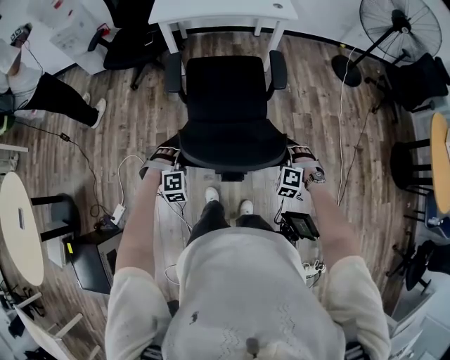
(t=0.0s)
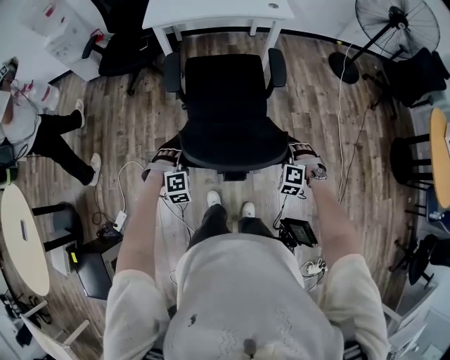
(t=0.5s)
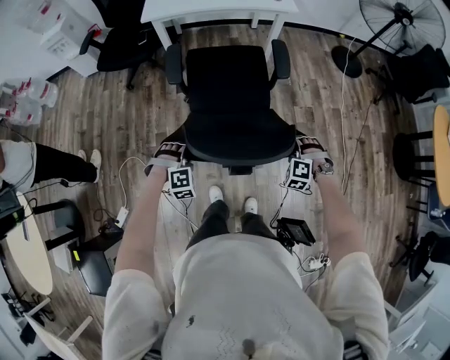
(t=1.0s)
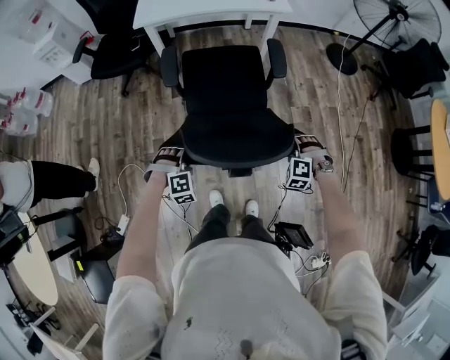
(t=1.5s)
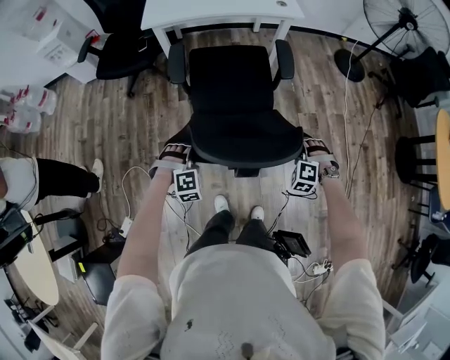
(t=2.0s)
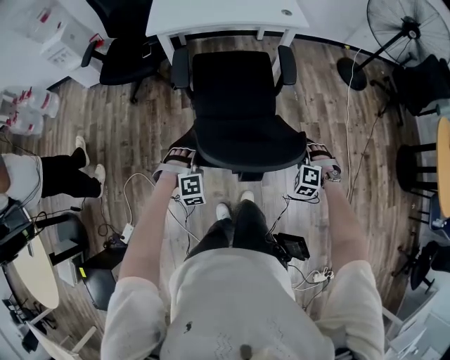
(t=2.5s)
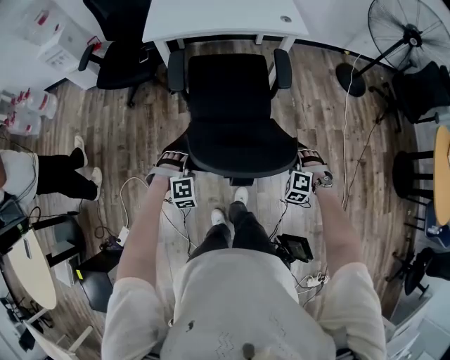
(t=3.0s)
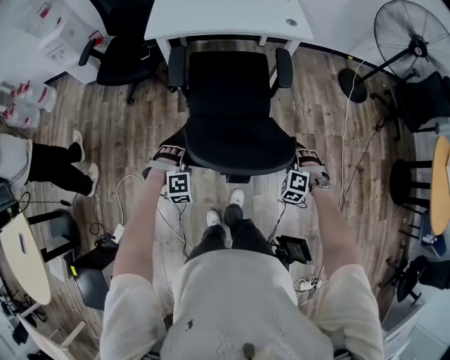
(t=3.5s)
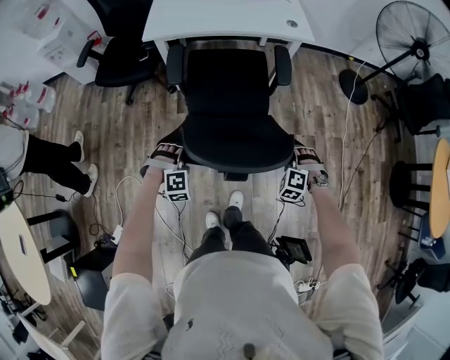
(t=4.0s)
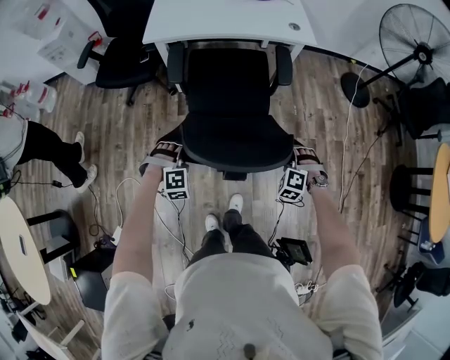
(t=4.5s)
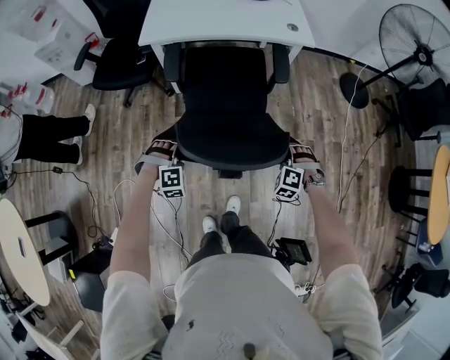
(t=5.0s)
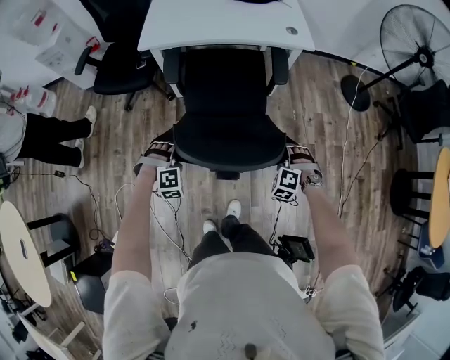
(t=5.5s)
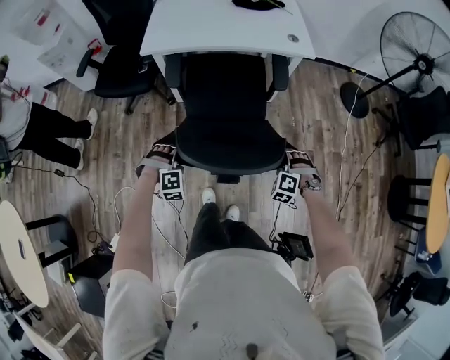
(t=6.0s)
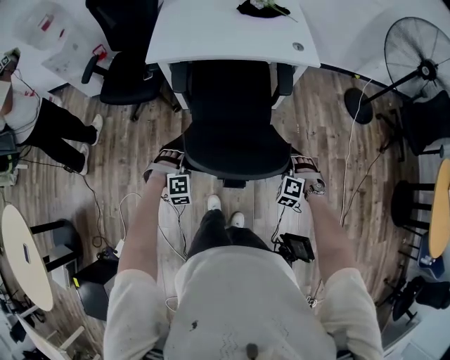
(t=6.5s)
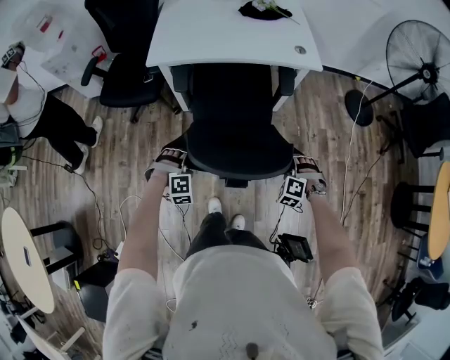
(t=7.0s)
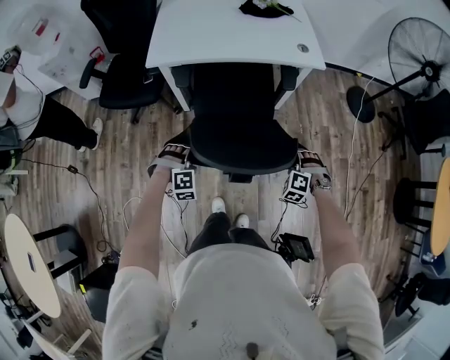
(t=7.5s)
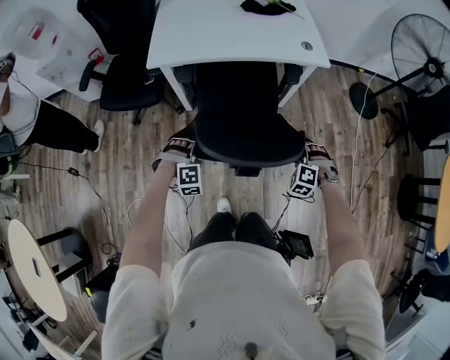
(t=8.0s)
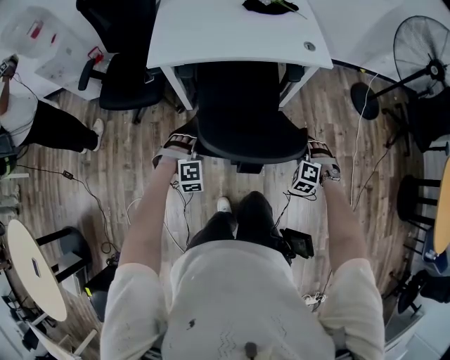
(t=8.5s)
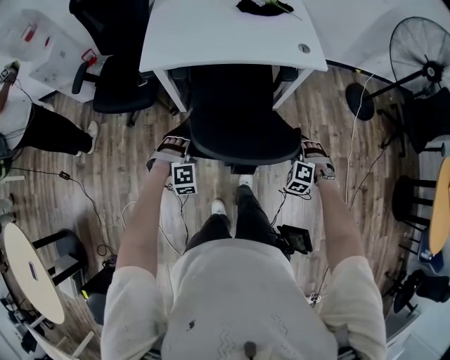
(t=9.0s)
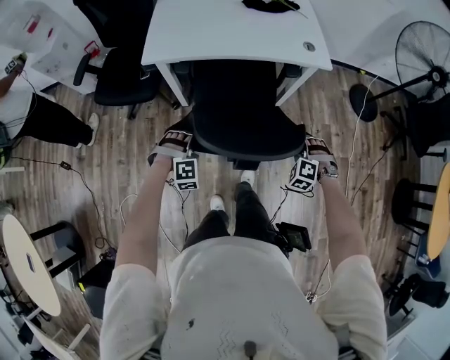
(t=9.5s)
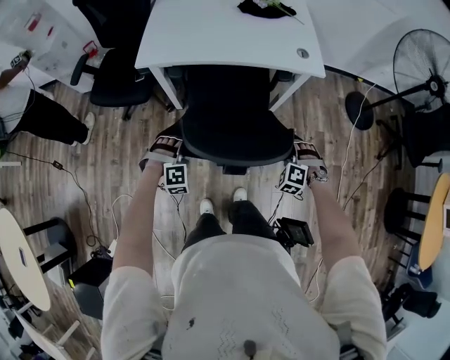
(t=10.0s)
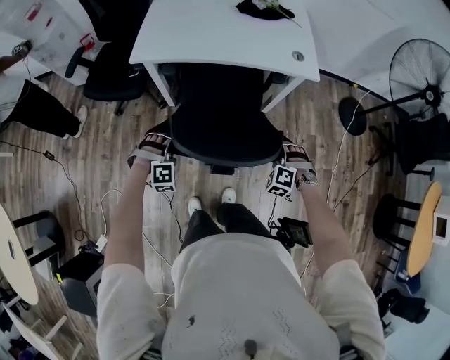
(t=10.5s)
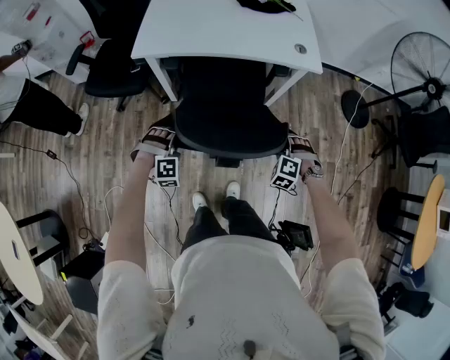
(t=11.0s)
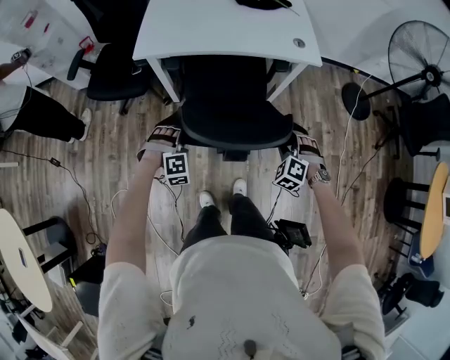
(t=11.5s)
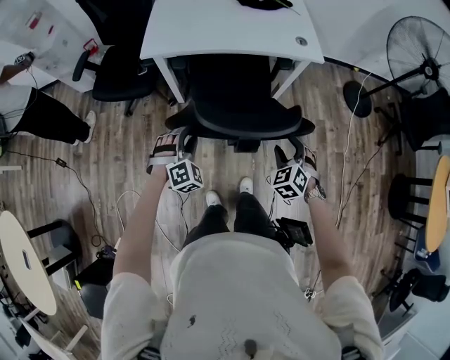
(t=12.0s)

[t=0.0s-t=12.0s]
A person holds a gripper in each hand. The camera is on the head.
t=0.0s to t=2.0s: Both grippers travel together forward, about 15 cm.
t=2.0s to t=4.0s: The grippers both shift forward by about 15 cm.
t=4.0s to t=6.0s: Both grippers move forward, roughly 10 cm.
t=6.0s to t=8.0s: The grippers both shift forward by approximately 15 cm.
t=8.0s to t=10.0s: Both grippers move forward, roughly 10 cm.
t=10.0s to t=12.0s: The right gripper is displaced backward, upward and to the left by about 15 cm, and swivels approximately 40 degrees. Meanwhile the left gripper heads backward and upward, covering roughly 10 cm, rotates about 20 degrees, and opens up.

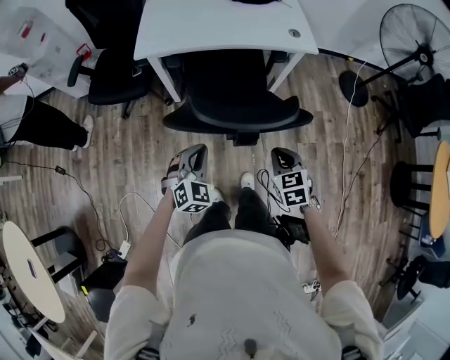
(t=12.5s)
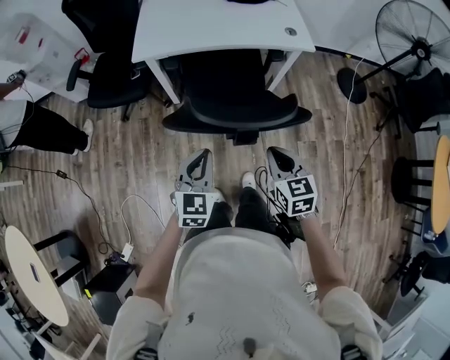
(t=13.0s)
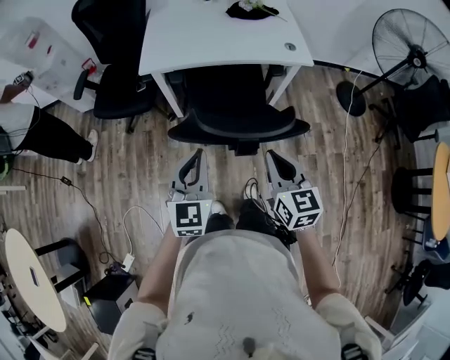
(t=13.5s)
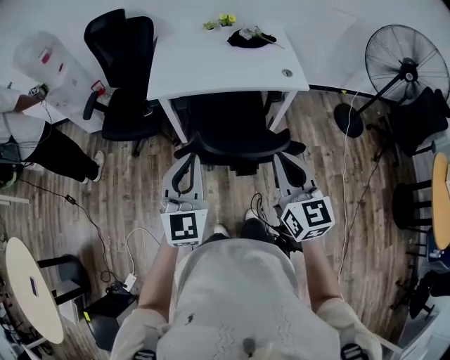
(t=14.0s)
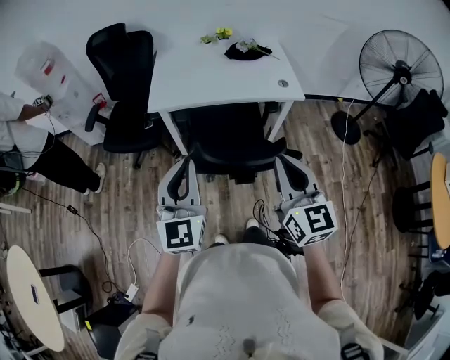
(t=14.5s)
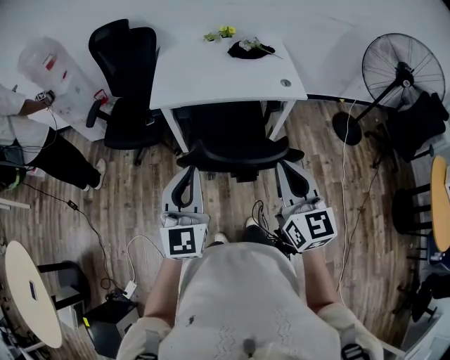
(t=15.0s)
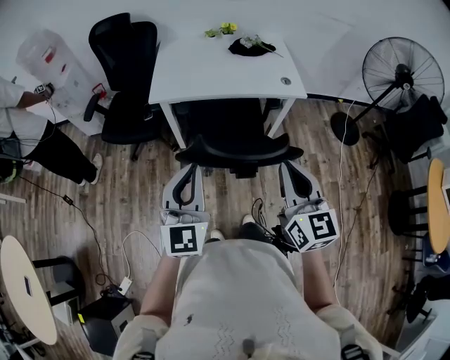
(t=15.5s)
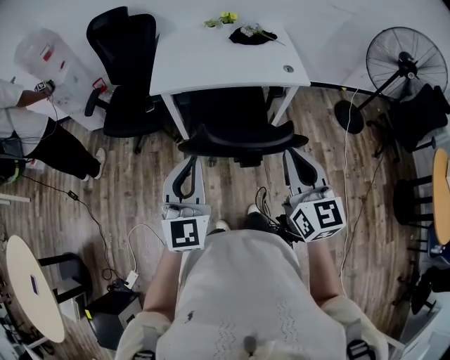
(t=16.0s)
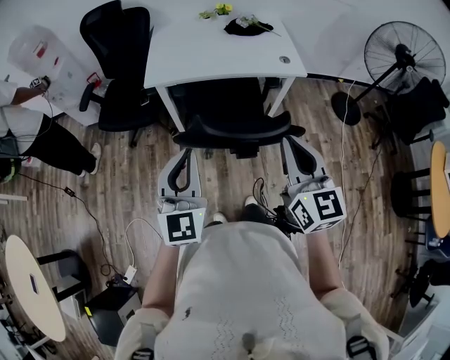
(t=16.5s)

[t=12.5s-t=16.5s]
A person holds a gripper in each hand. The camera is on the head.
t=12.5s to t=14.5s: Both grippers move upward, about 30 cm. The right gripper tilts its fingers roughly 40 degrees upward; the left gripper tips its fingers upward by about 40 degrees.
t=14.5s to t=16.5s: The left gripper ends up approximately 5 cm from where it was.

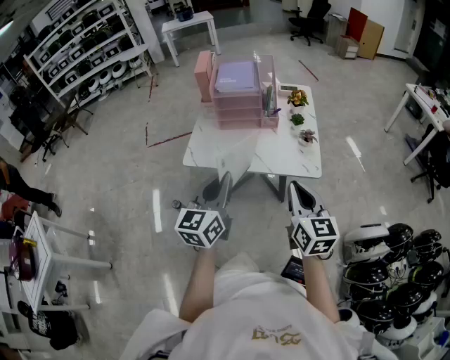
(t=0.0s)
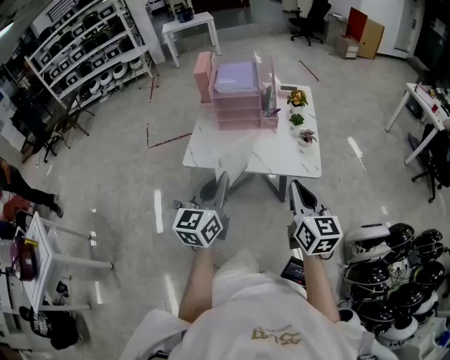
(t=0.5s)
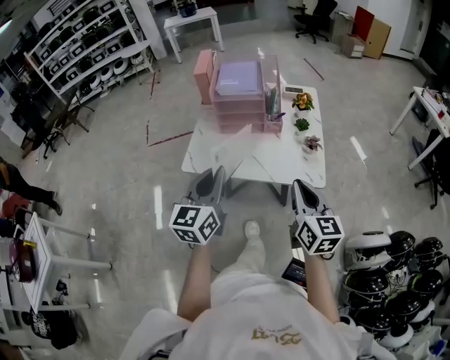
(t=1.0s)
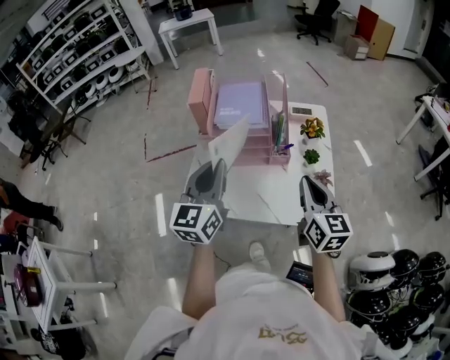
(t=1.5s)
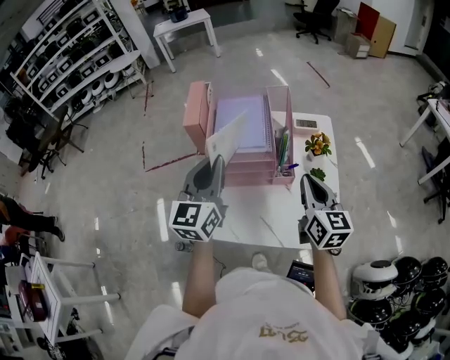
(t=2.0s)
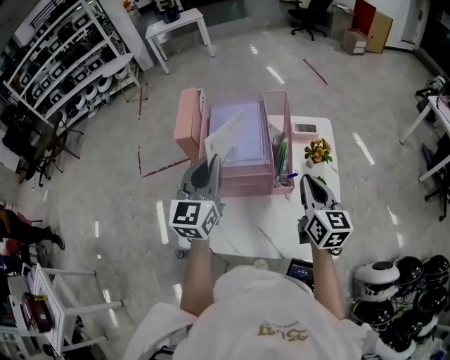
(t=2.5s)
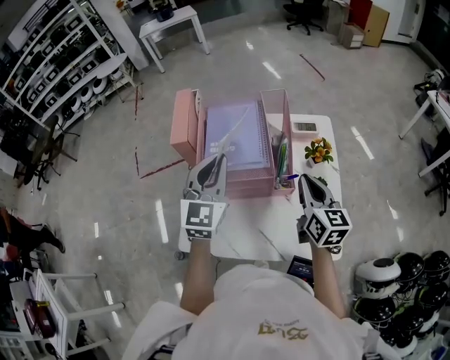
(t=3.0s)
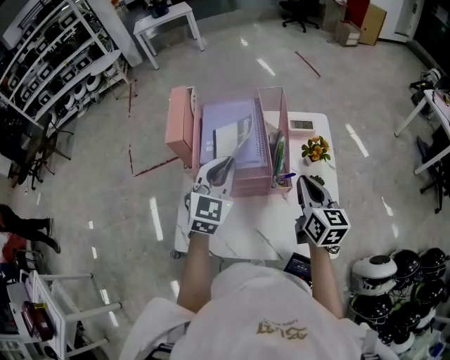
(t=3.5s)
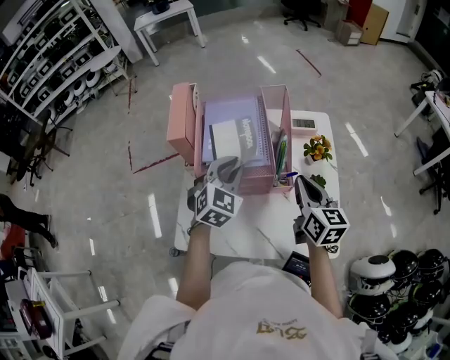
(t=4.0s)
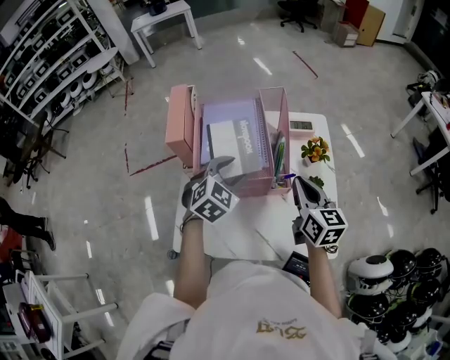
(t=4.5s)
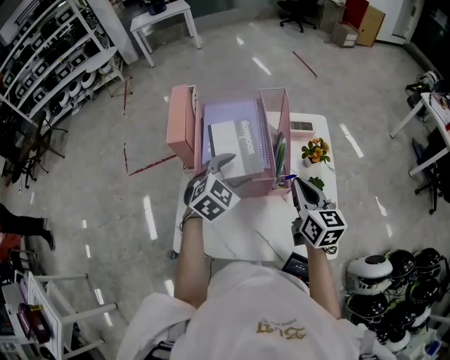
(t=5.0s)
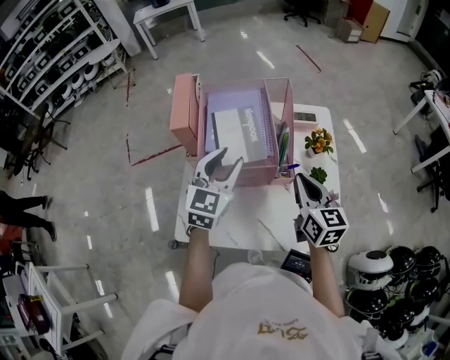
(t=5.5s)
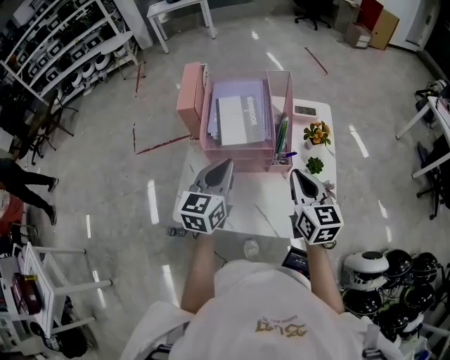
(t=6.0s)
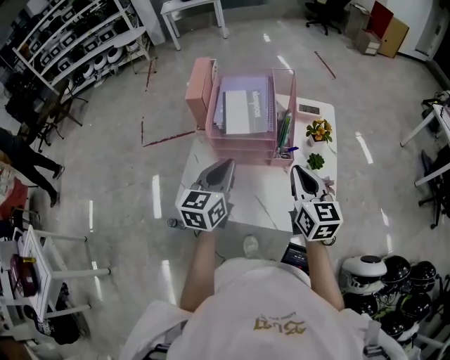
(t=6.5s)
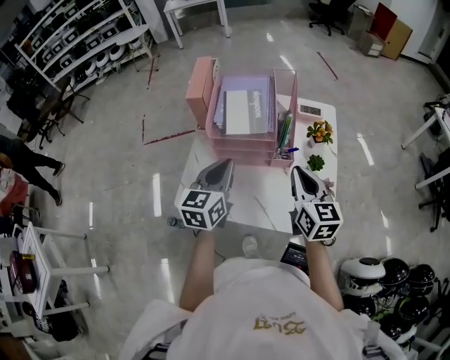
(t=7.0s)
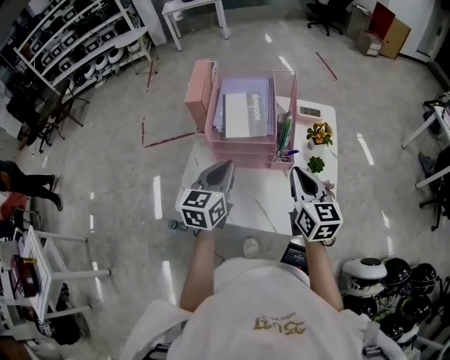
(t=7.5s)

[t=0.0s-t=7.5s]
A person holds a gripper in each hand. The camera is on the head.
t=0.0s to t=2.0s: Both grippers travel together forward, about 40 cm.
t=2.0s to t=4.0s: The right gripper moves forward and downward, about 10 cm; the left gripper travels downward and forward by roughly 20 cm, and turns by approximately 40 degrees.
t=4.0s to t=5.5s: The left gripper shifts by roughly 5 cm, rotates about 20 degrees, and opens its fingers.
t=5.5s to t=7.5s: The left gripper is displaced backward by approximately 10 cm, swivels roughly 20 degrees, and closes its fingers. The right gripper heads backward, covering roughly 5 cm.

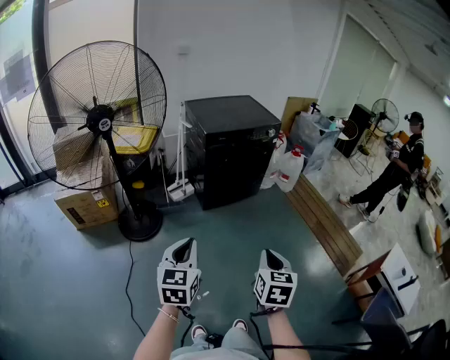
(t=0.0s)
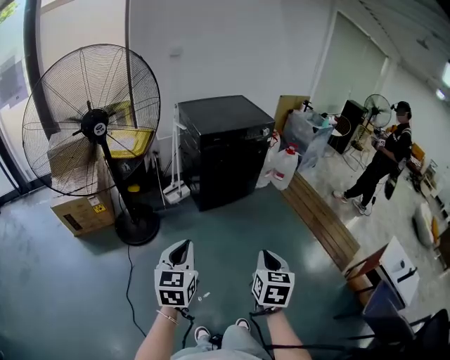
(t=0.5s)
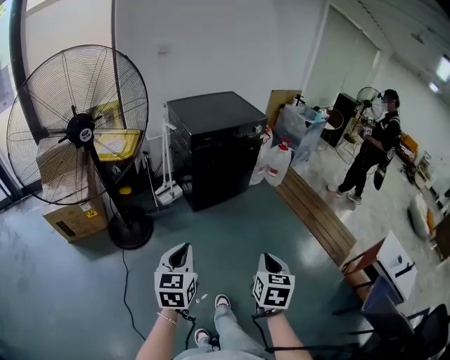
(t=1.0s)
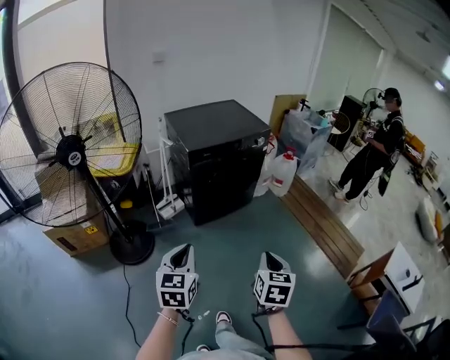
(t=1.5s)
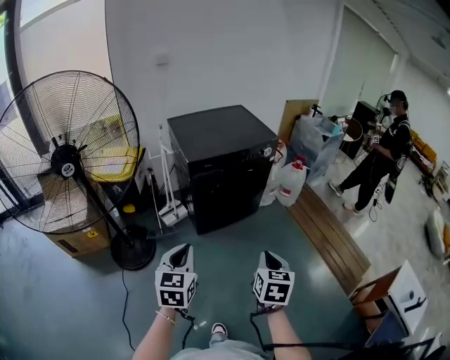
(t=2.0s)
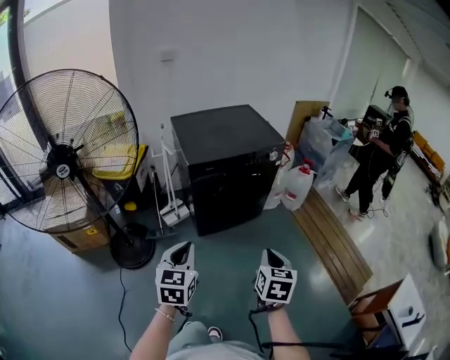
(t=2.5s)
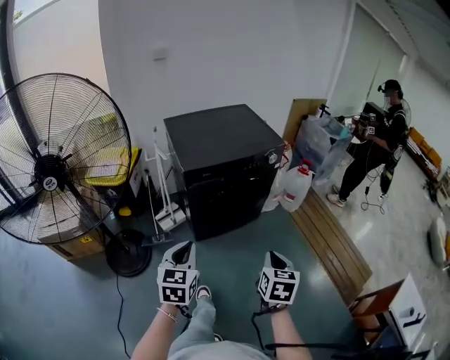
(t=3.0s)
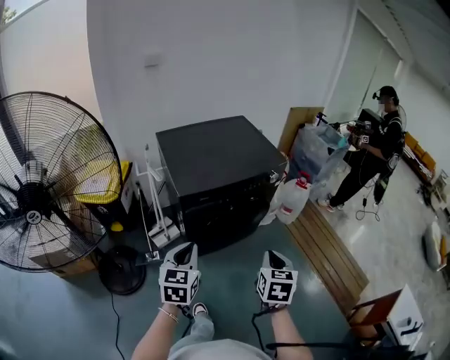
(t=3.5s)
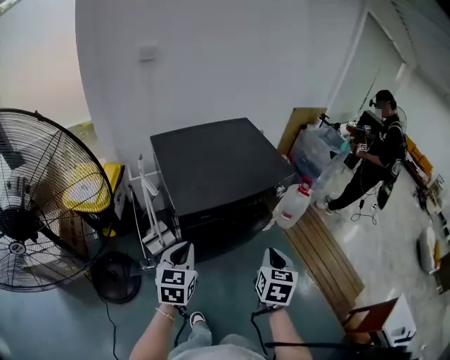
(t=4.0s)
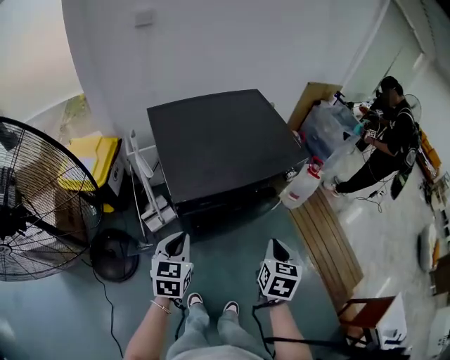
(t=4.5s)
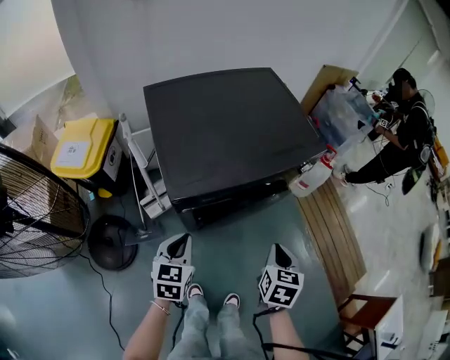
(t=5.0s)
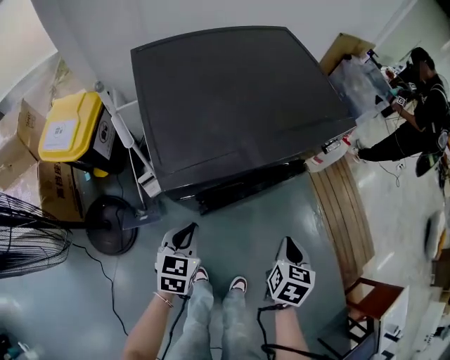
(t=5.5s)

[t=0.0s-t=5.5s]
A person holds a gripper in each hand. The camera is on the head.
t=0.0s to t=2.0s: Both grippers travel together forward, some 25 cm.
t=2.0s to t=3.5s: The two grippers go about 25 cm forward.
t=3.5s to t=5.5s: The grippers both shift downward and forward by about 30 cm.
